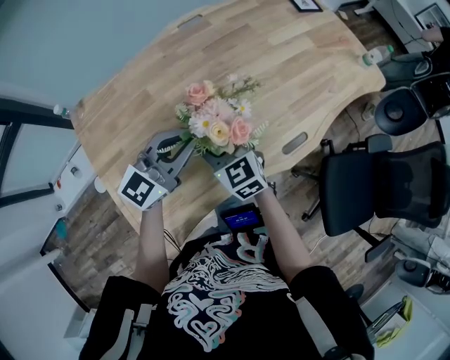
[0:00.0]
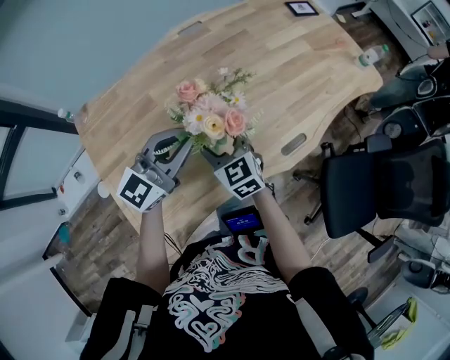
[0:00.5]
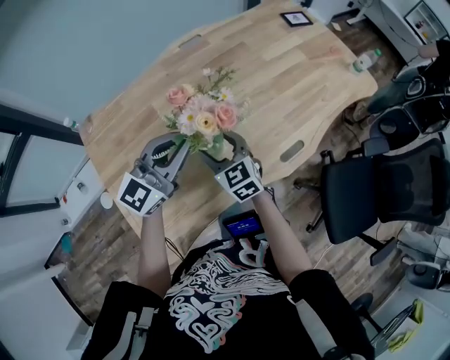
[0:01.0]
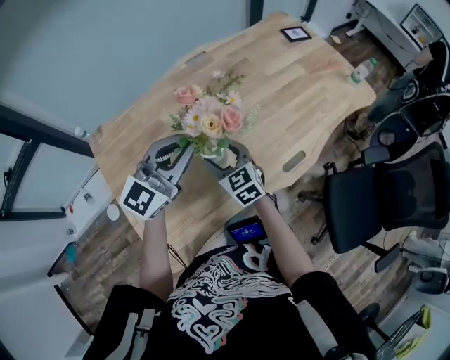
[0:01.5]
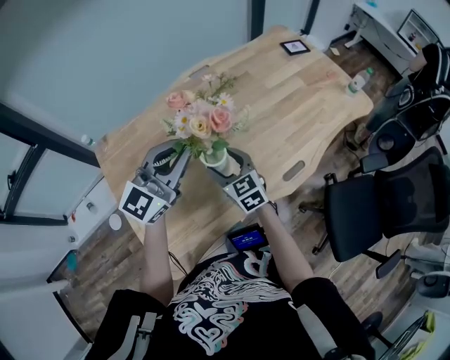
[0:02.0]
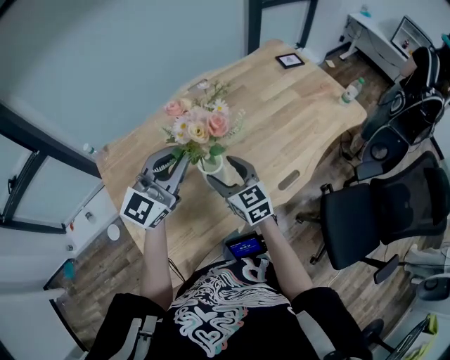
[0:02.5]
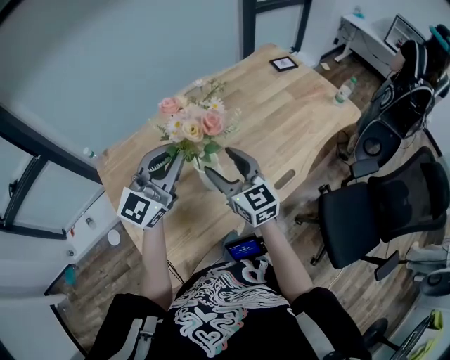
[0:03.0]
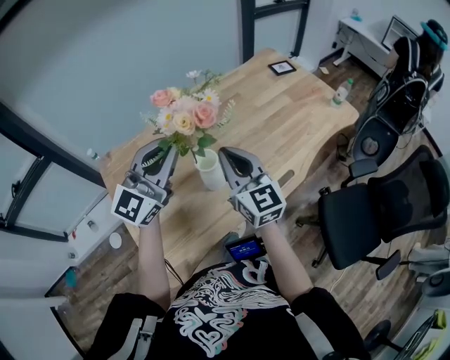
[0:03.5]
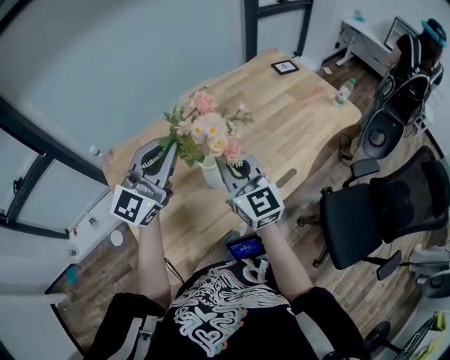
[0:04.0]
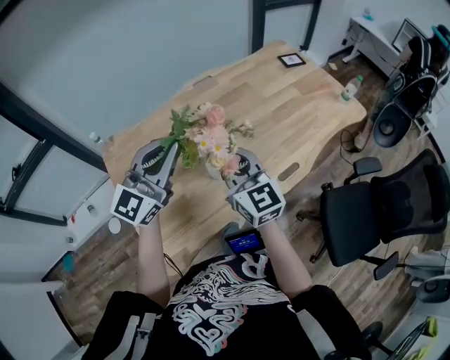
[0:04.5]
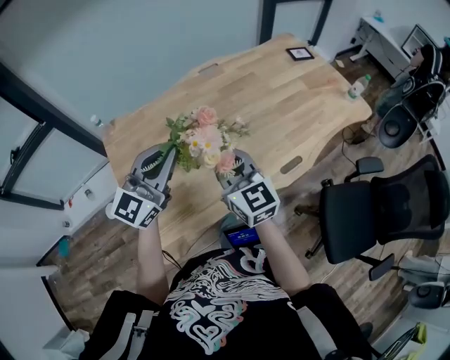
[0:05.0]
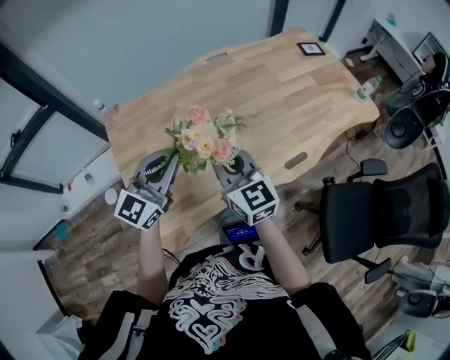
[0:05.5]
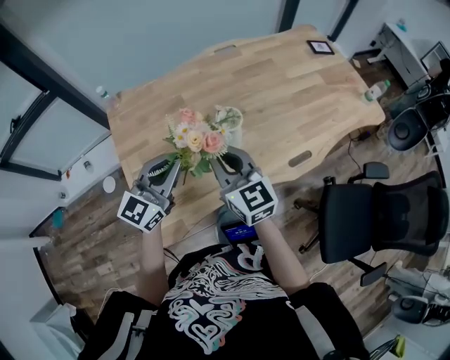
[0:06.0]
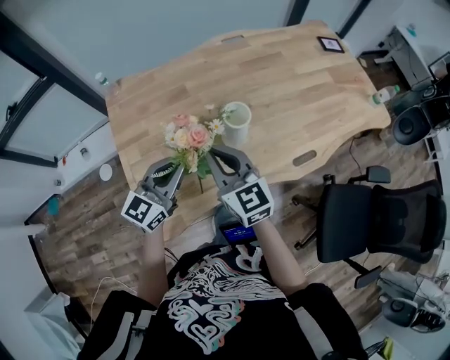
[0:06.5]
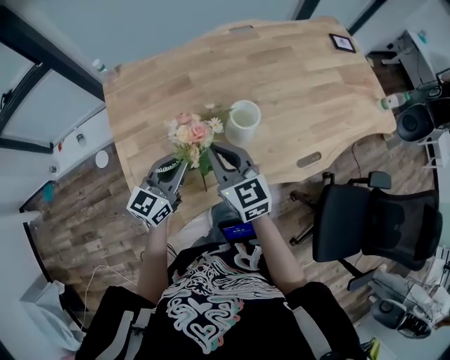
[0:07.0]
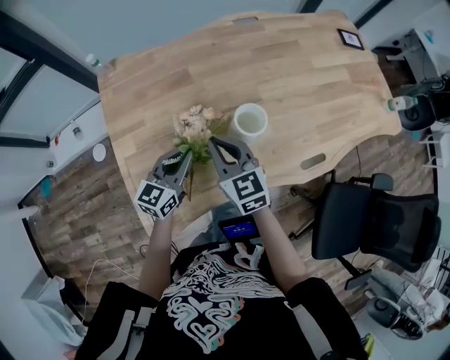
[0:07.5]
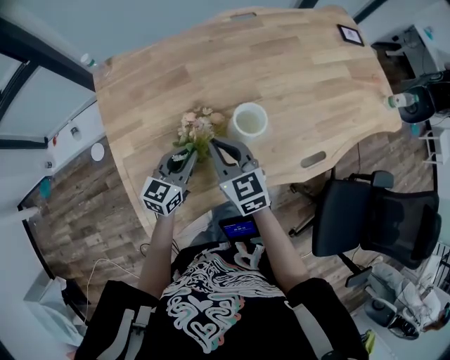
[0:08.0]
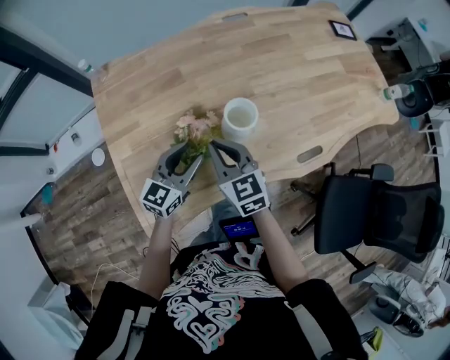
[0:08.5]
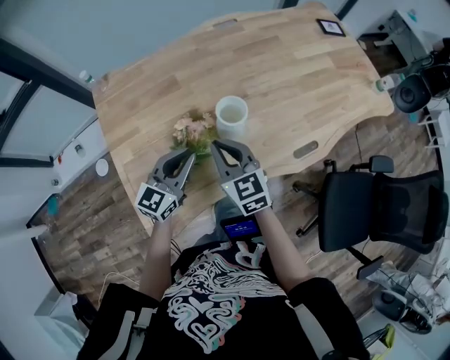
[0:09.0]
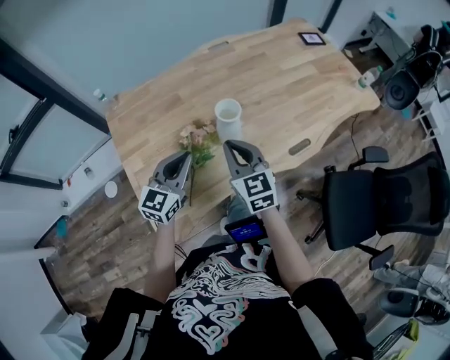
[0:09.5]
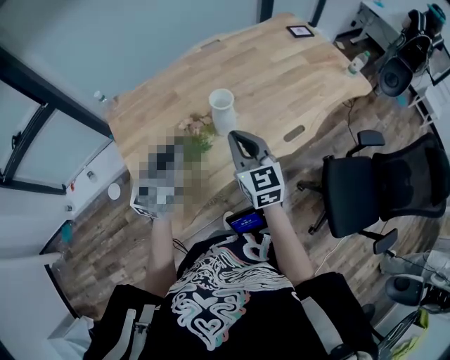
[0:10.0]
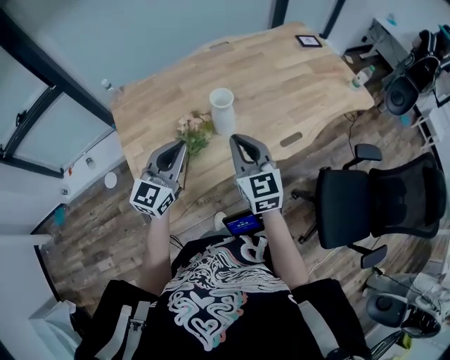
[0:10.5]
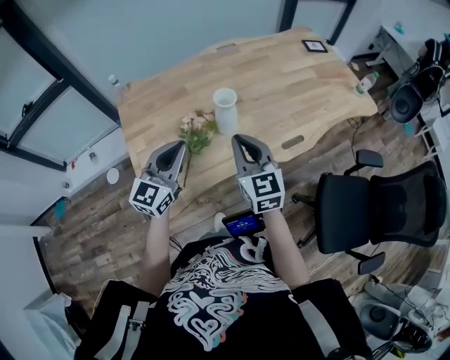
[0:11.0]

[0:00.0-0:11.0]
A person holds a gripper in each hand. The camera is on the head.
0:00.0 to 0:02.0: The left gripper heads upward, covering some 10 cm.
0:02.0 to 0:03.5: The left gripper travels upward by some 10 cm; the right gripper goes roughly 20 cm upward, rotates about 30 degrees, and closes up.
0:03.5 to 0:05.5: The left gripper heads downward, backward and to the left, covering about 15 cm; the right gripper goes roughly 10 cm to the left, backward and downward.
0:05.5 to 0:07.5: The right gripper is displaced downward, to the left and forward by roughly 15 cm; the left gripper moves downward, roughly 20 cm, and rotates about 30 degrees.
0:07.5 to 0:09.0: The left gripper changes place by roughly 5 cm, and opens, then closes once more. The right gripper moves roughly 5 cm.
0:09.0 to 0:11.0: The left gripper is displaced upward and backward by about 15 cm. The right gripper is displaced upward, backward and to the right by approximately 20 cm.

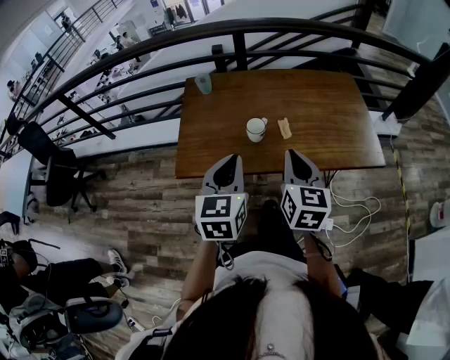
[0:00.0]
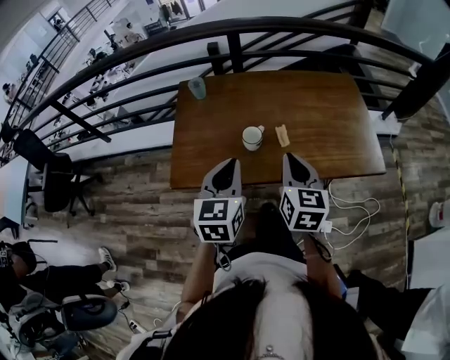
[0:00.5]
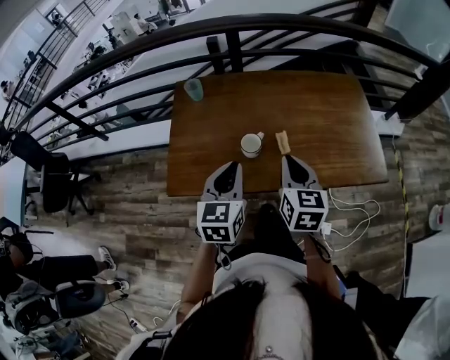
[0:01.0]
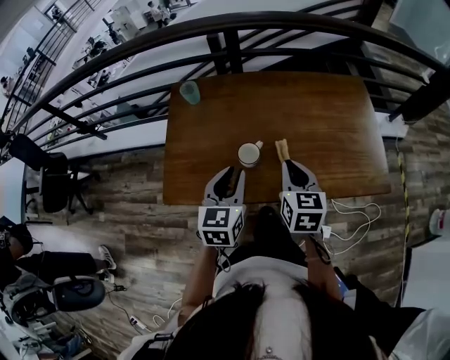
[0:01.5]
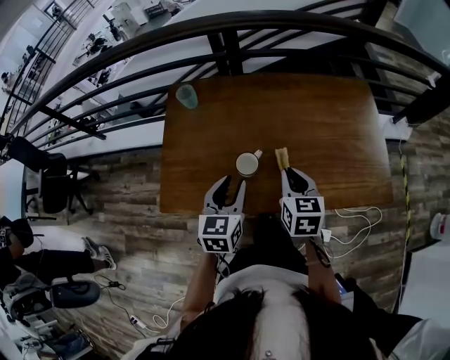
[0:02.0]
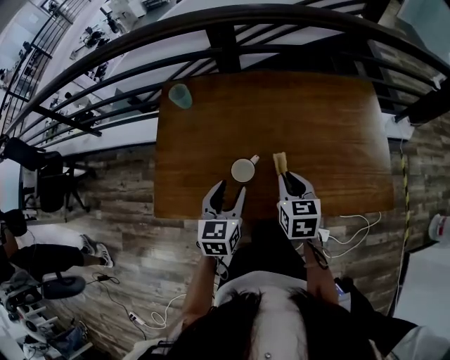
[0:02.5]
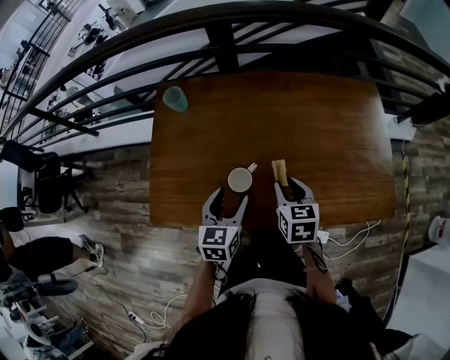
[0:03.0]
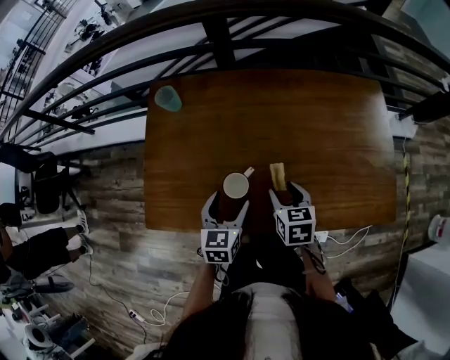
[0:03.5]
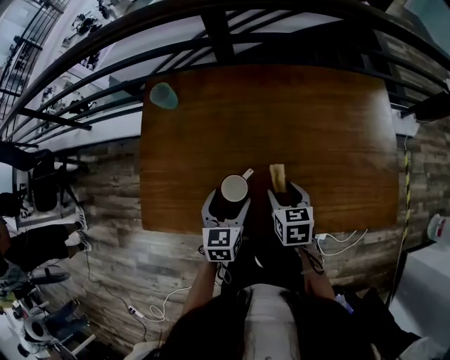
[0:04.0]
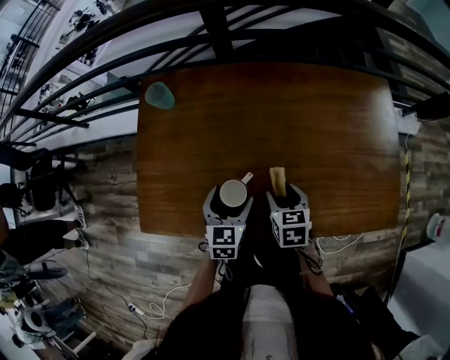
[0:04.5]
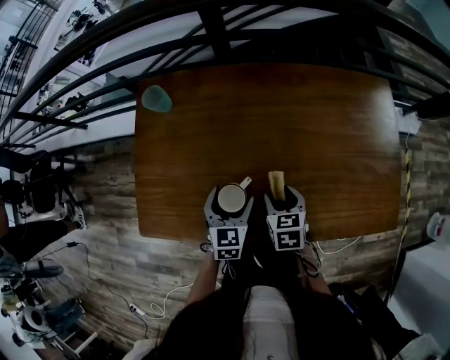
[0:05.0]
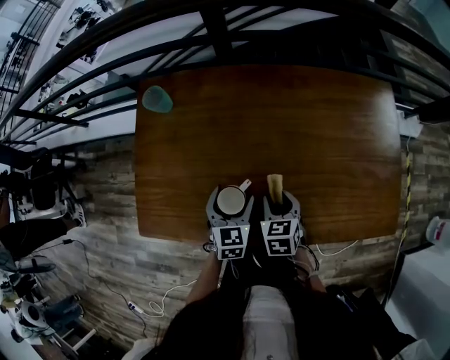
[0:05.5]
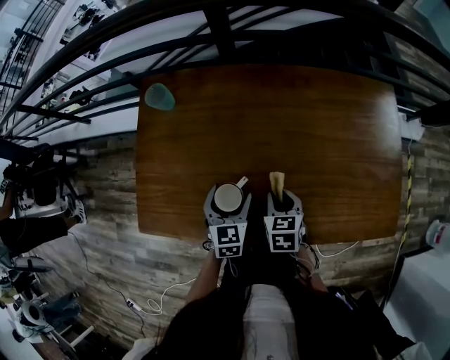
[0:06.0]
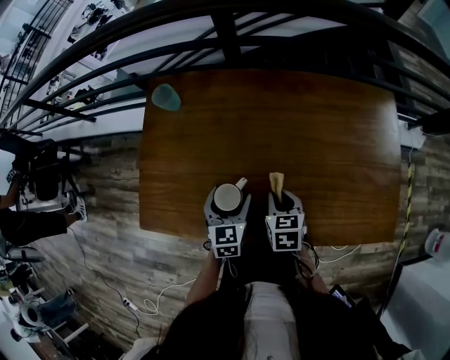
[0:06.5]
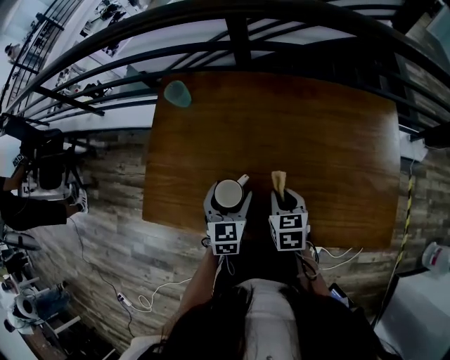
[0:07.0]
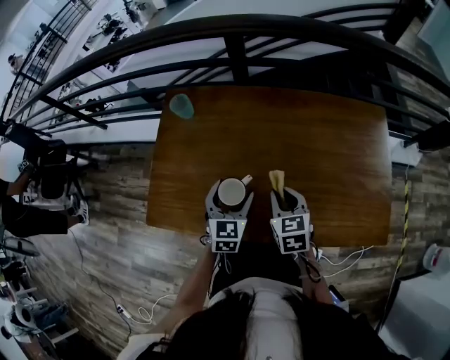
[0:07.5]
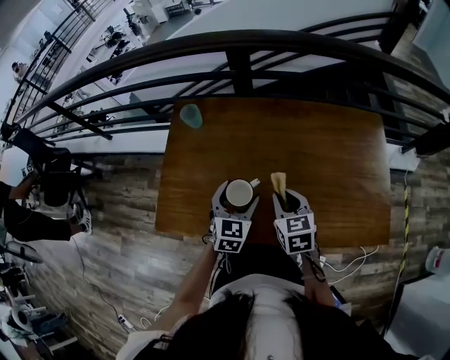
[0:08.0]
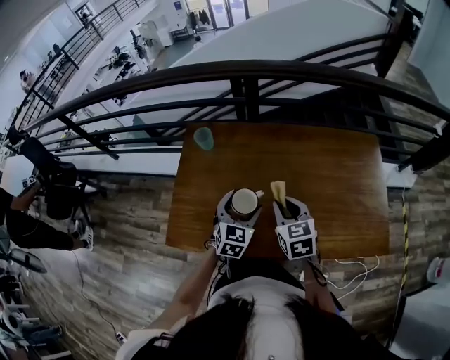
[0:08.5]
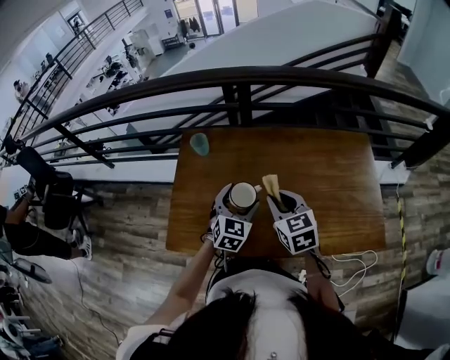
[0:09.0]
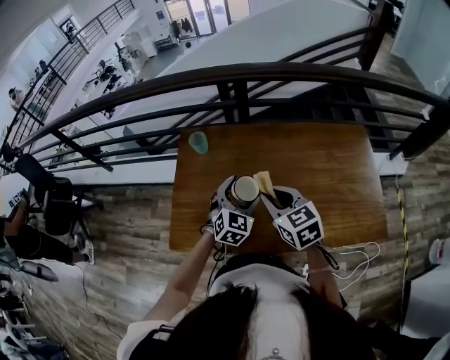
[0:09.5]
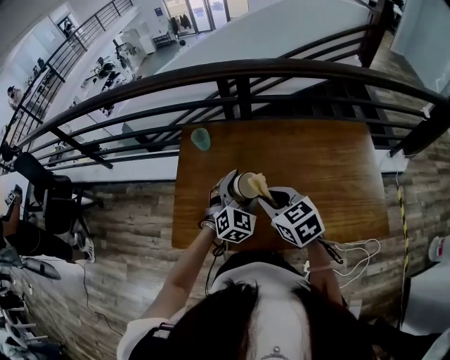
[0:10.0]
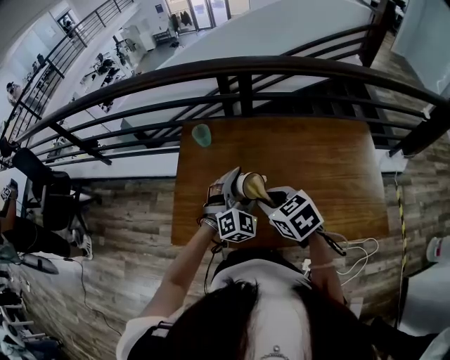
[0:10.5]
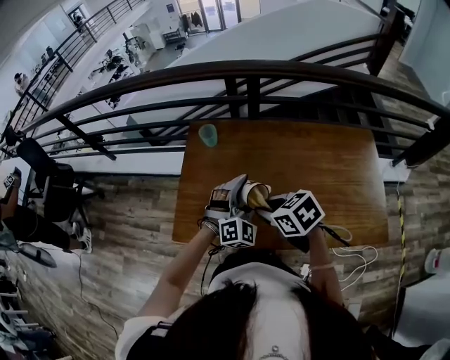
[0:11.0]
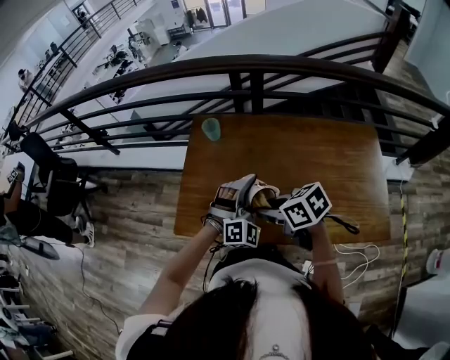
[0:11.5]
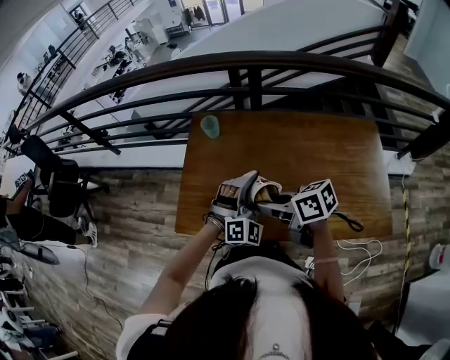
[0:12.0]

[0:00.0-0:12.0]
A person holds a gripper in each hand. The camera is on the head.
0:00.0 to 0:02.0: The grippers both shift forward and downward by some 25 cm.
0:02.0 to 0:04.0: The grippers both shift downward and forward by some 15 cm. The right gripper opens up; the left gripper opens.
0:04.0 to 0:06.0: The left gripper changes place by some 5 cm, while the right gripper closes its fingers.
0:06.0 to 0:08.0: Both grippers move upward, some 10 cm.
0:08.0 to 0:10.0: The right gripper heads upward and to the left, covering roughly 15 cm, while the left gripper is displaced upward by about 10 cm, and rotates about 30 degrees.
0:10.0 to 0:12.0: The right gripper moves to the left, about 5 cm, and turns by about 40 degrees. Meanwhile the left gripper shifts some 5 cm backward, and turns by some 30 degrees.

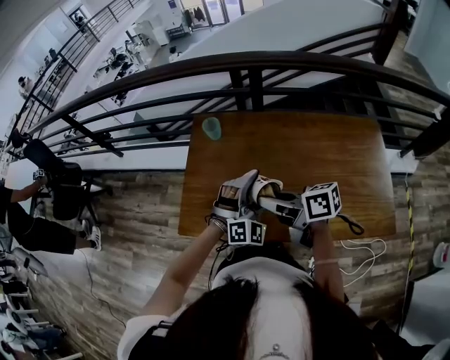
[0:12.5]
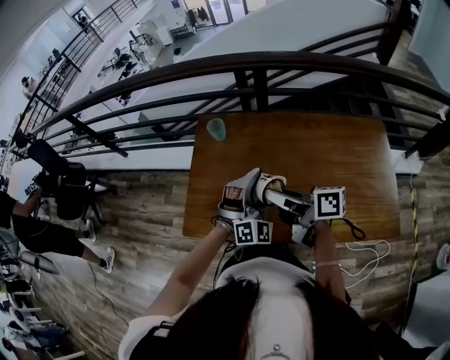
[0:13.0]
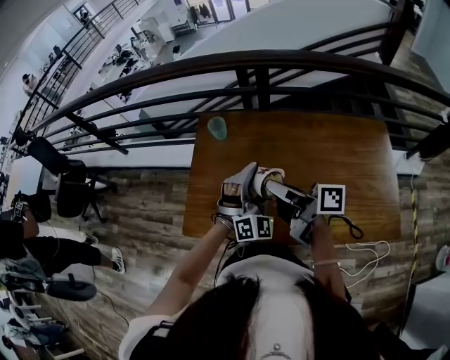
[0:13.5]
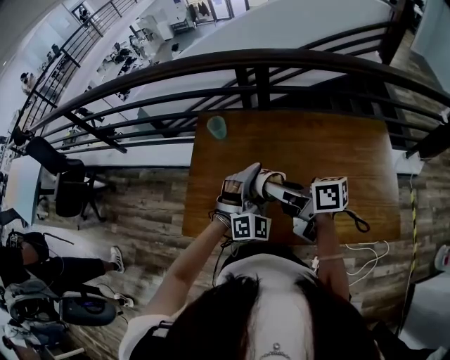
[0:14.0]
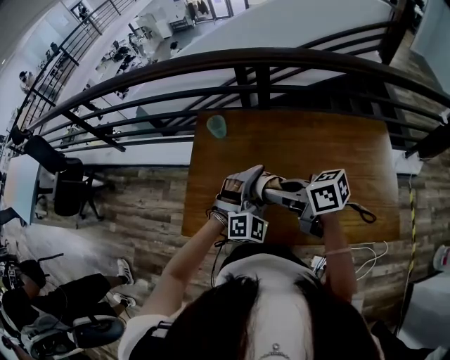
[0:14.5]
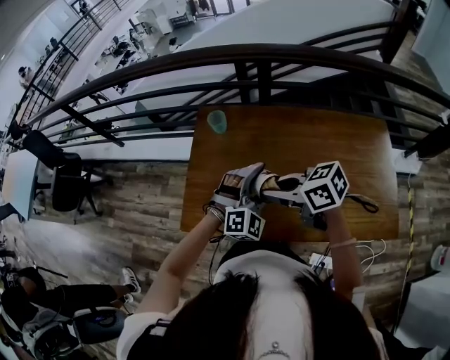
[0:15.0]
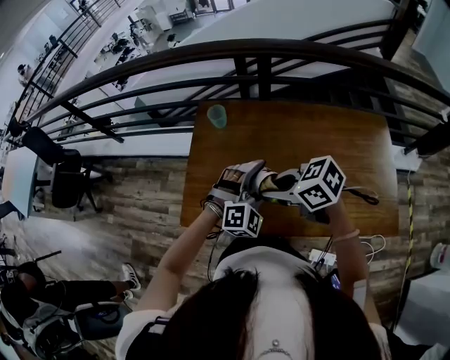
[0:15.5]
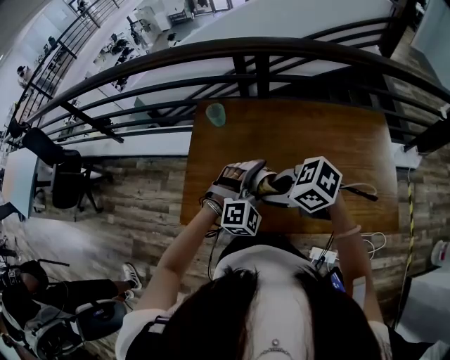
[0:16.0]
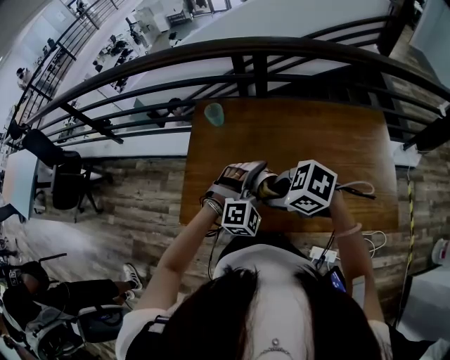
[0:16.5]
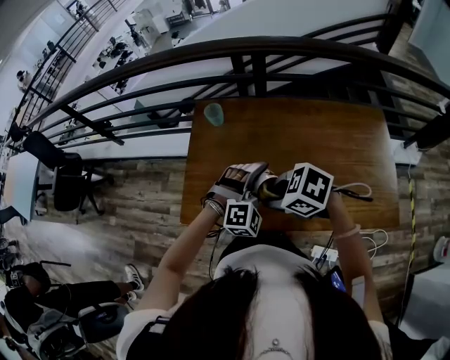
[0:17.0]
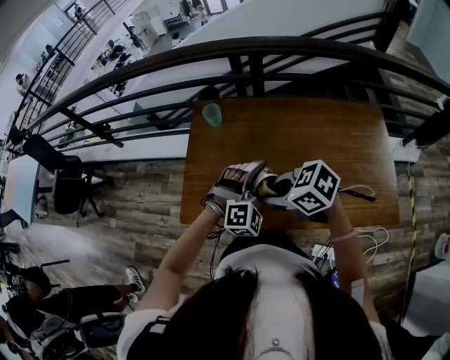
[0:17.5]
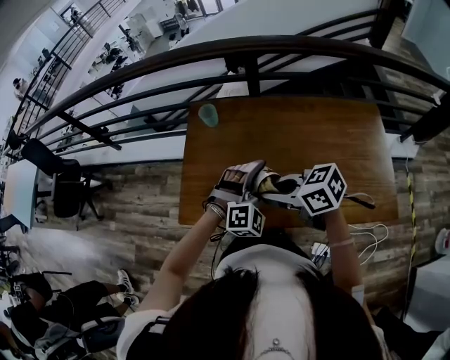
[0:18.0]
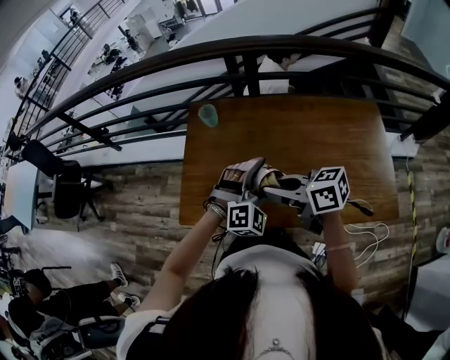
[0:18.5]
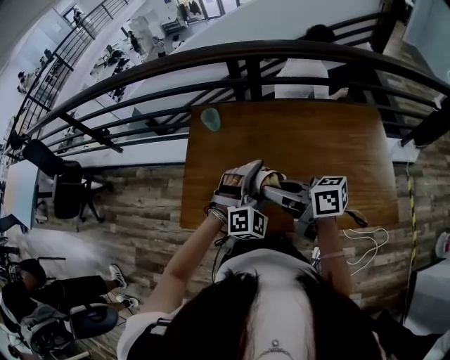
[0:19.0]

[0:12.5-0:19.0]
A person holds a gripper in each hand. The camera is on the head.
0:14.5 to 0:17.0: The right gripper shifts by about 10 cm, and angles its fingers downward, by approximately 30 degrees.
0:17.0 to 0:19.0: The right gripper shifts roughly 5 cm upward, and angles its fingers upward, by roughly 40 degrees.
